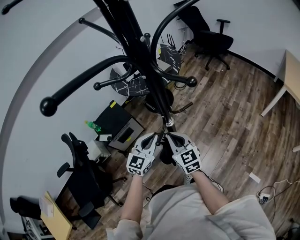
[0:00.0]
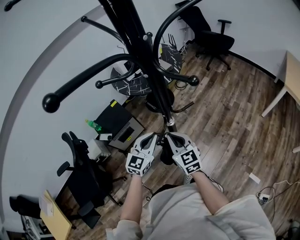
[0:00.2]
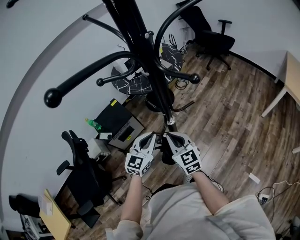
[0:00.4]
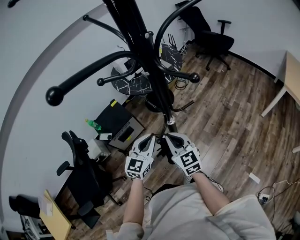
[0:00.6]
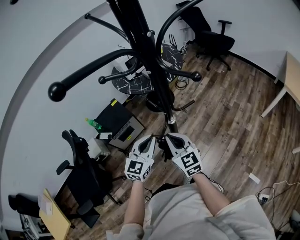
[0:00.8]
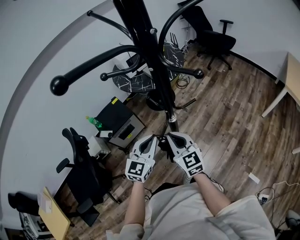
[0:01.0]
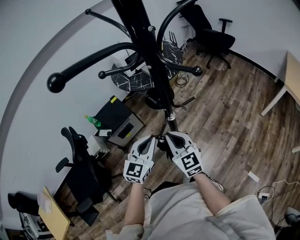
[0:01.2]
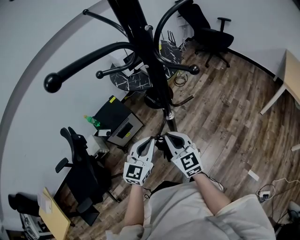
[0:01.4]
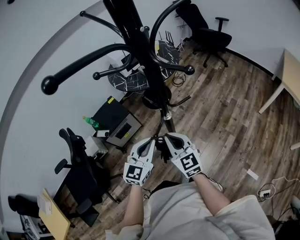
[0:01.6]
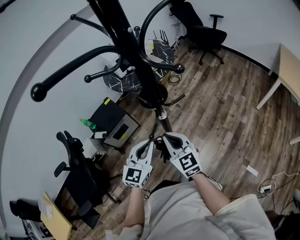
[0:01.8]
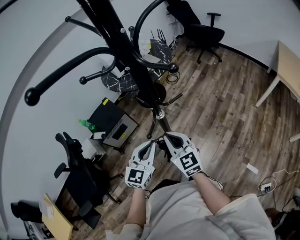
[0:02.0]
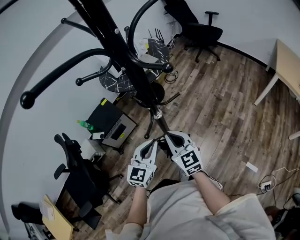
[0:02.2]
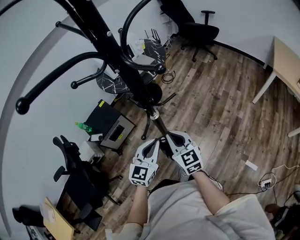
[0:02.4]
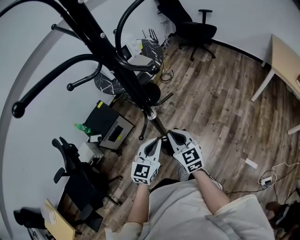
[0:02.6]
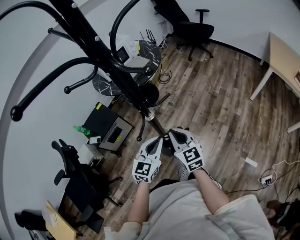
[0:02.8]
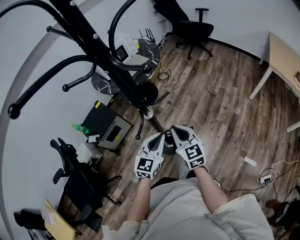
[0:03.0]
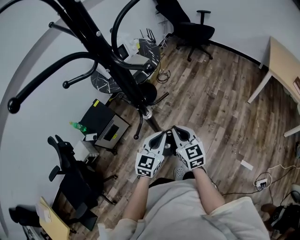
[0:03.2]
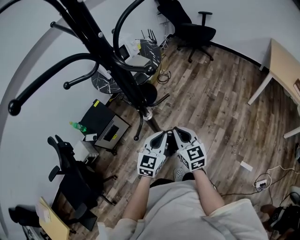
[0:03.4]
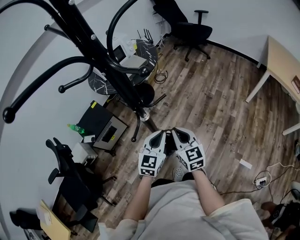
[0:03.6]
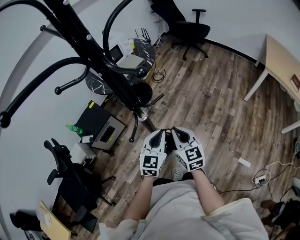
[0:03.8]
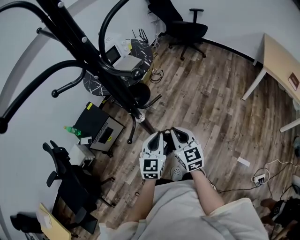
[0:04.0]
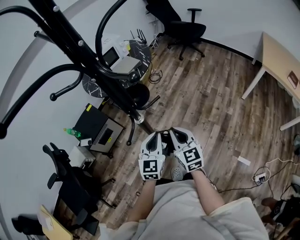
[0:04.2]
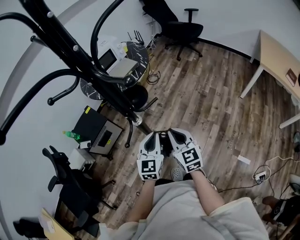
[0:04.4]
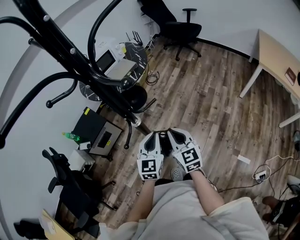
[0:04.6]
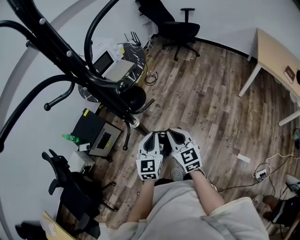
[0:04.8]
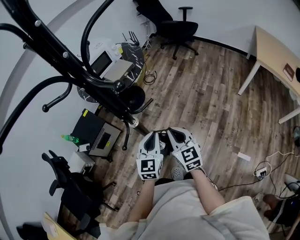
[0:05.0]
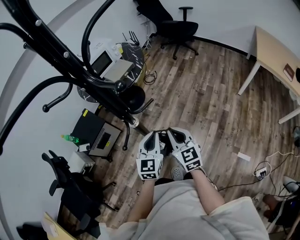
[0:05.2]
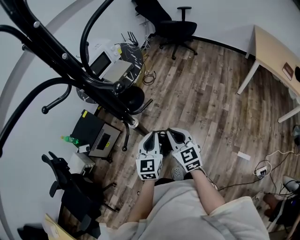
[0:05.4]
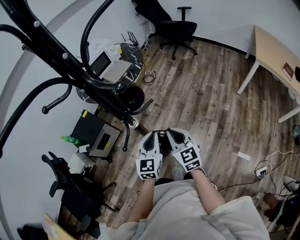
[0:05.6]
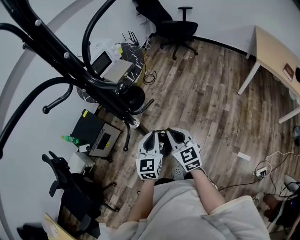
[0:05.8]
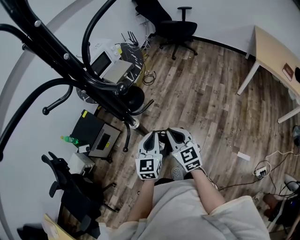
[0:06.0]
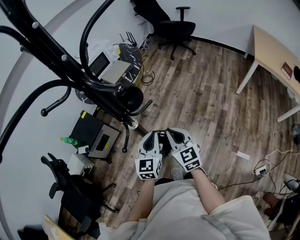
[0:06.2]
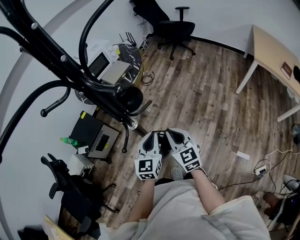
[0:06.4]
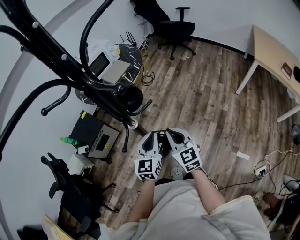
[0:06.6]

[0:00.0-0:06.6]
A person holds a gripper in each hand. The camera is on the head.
0:00.0 to 0:01.6: The left gripper moves backward, some 5 cm, while the right gripper shifts by approximately 5 cm.
0:01.6 to 0:03.2: The left gripper goes approximately 15 cm to the right and downward. Meanwhile the right gripper travels to the right by some 10 cm.
0:03.2 to 0:06.6: The grippers stay close to where they were, moving slightly.

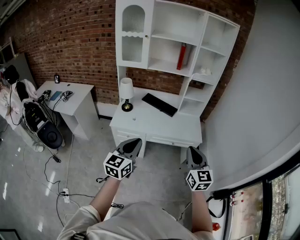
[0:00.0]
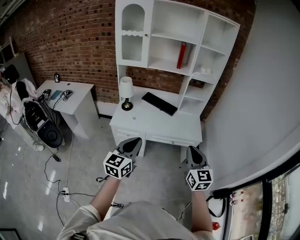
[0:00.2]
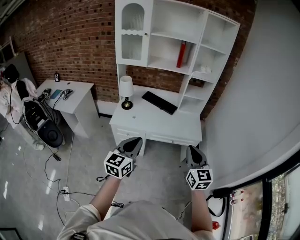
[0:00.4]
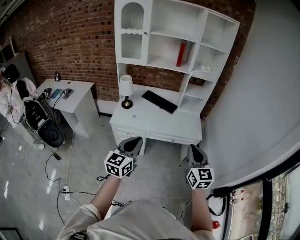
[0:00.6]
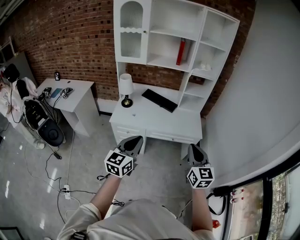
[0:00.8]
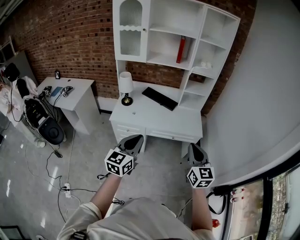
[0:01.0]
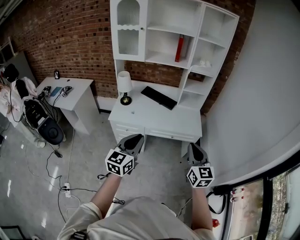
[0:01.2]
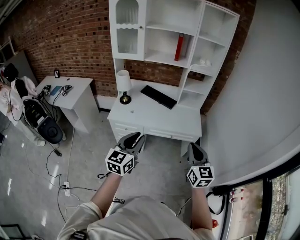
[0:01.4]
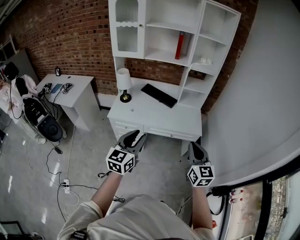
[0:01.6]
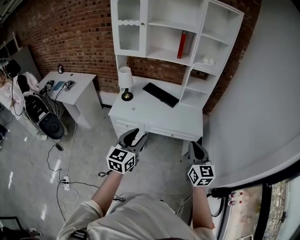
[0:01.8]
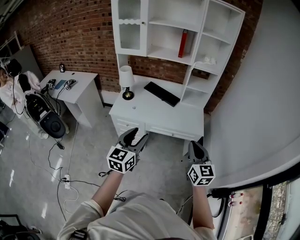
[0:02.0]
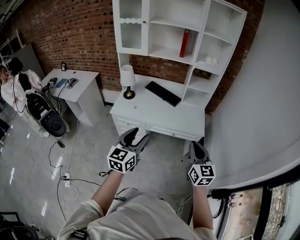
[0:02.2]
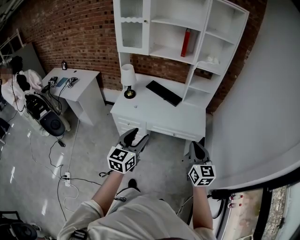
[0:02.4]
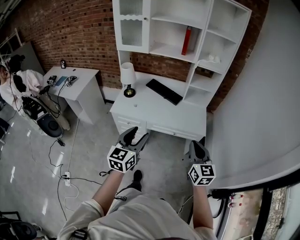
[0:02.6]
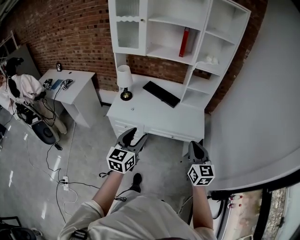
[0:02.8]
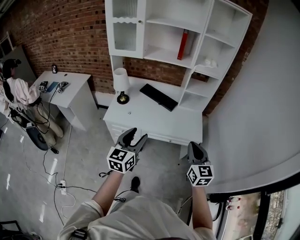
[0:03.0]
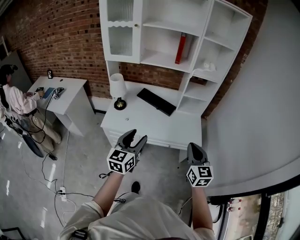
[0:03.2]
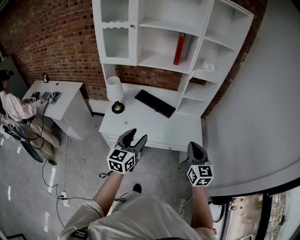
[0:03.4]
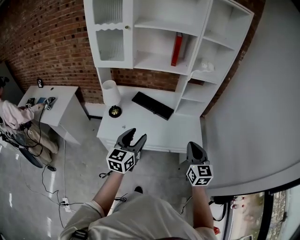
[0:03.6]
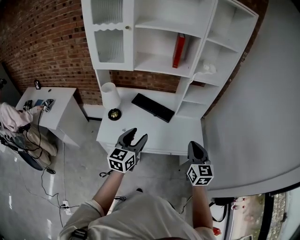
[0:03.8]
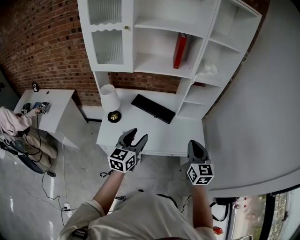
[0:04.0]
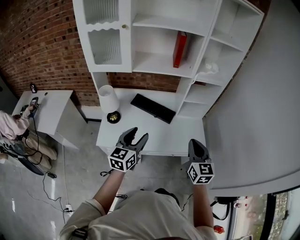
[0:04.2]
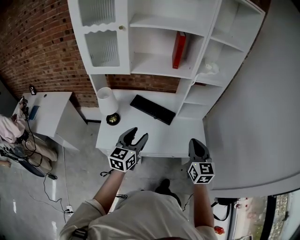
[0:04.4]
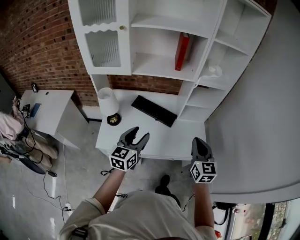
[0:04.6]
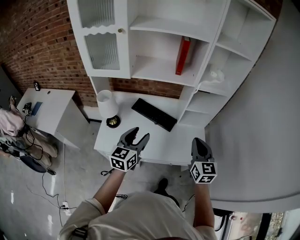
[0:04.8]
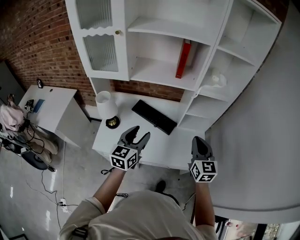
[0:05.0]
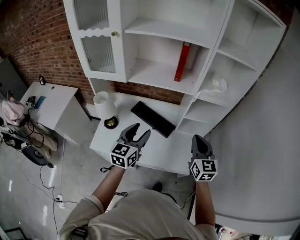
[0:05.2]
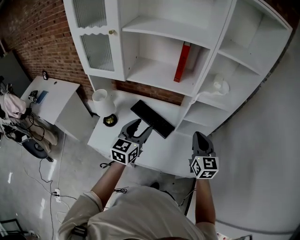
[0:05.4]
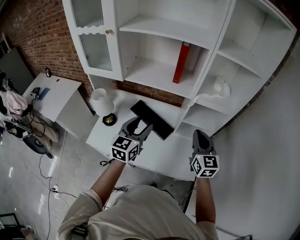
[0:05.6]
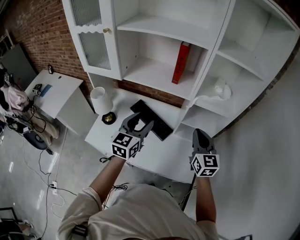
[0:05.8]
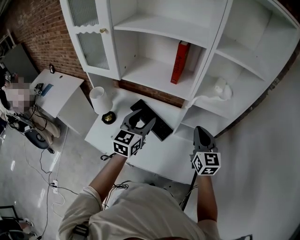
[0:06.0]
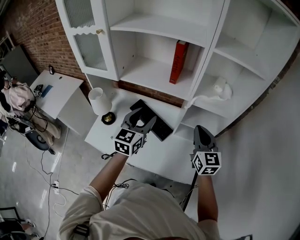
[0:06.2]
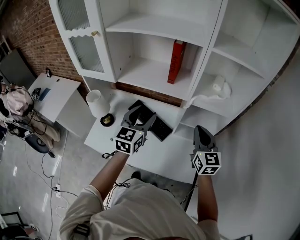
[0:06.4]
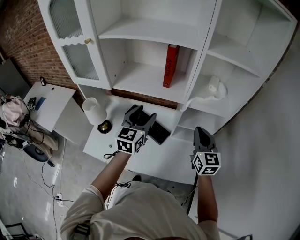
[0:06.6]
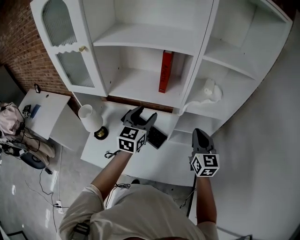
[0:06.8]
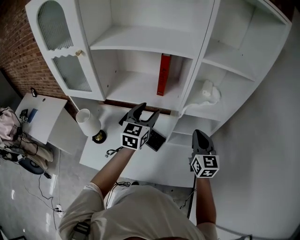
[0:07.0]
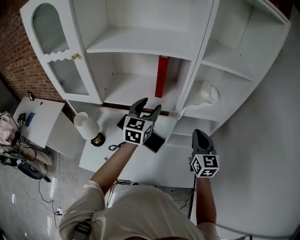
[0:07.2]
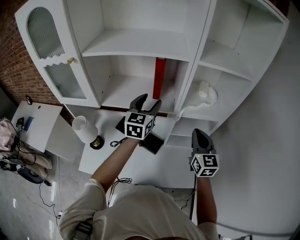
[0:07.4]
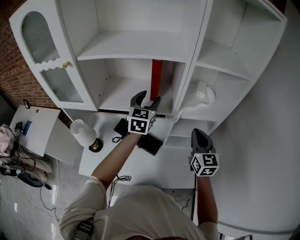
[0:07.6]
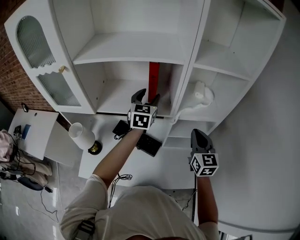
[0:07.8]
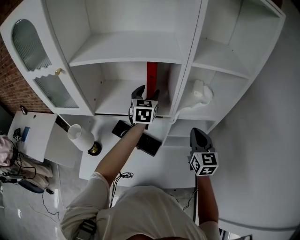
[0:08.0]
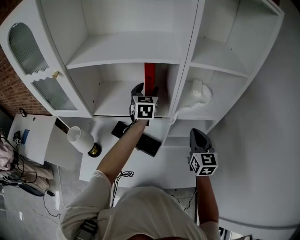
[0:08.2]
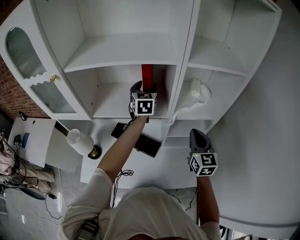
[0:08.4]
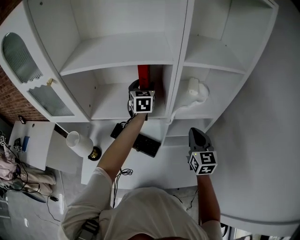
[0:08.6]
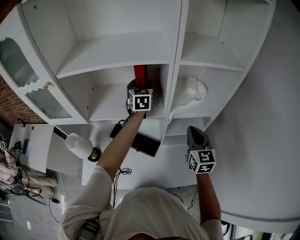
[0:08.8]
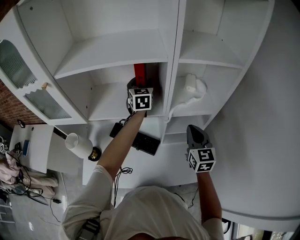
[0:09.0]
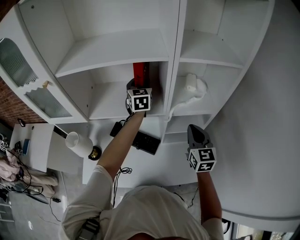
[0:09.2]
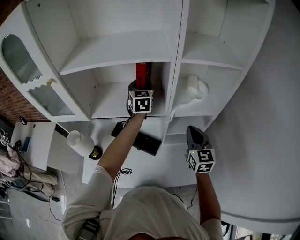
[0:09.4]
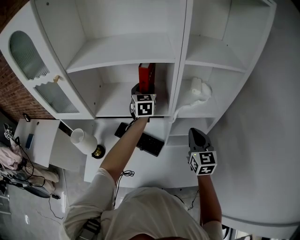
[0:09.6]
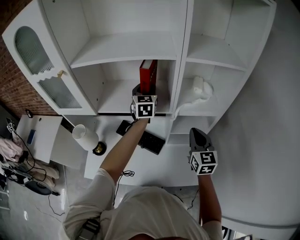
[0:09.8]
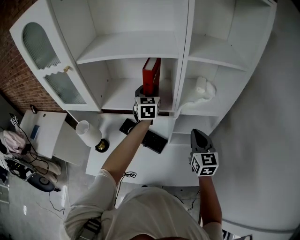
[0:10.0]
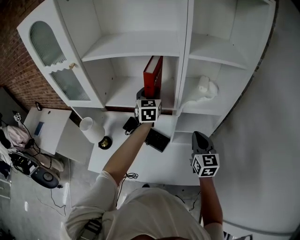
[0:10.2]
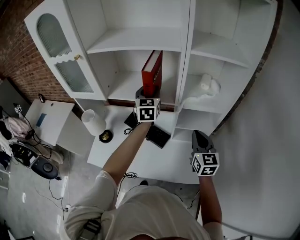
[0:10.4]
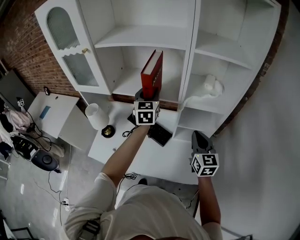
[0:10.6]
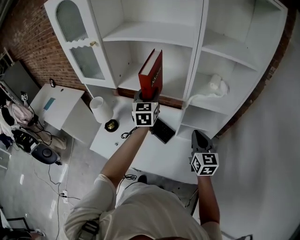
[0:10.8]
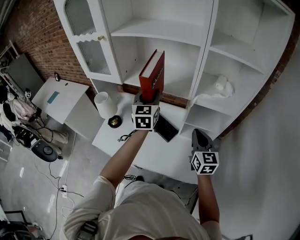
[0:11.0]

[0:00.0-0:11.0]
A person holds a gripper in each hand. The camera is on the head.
0:00.0 to 0:01.6: Both grippers travel together to the right, approximately 5 cm. The left gripper opens its fingers.
0:01.6 to 0:03.2: Both grippers move forward, some 15 cm. The left gripper opens up.
0:03.2 to 0:04.8: The two grippers go some 25 cm forward.
0:04.8 to 0:06.2: The two grippers go approximately 20 cm forward and to the right.
0:06.2 to 0:07.8: The right gripper moves forward, roughly 5 cm, while the left gripper moves forward, about 25 cm.
0:07.8 to 0:09.4: The left gripper moves forward, about 10 cm.
0:09.4 to 0:11.0: The left gripper travels backward and to the left by approximately 25 cm; the right gripper heads backward, covering some 5 cm.

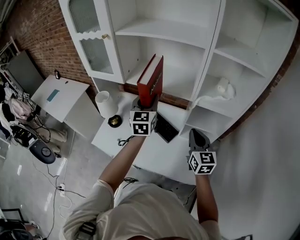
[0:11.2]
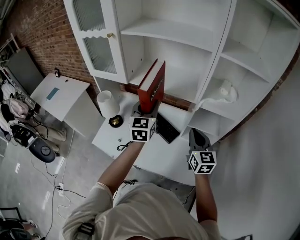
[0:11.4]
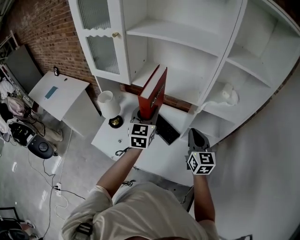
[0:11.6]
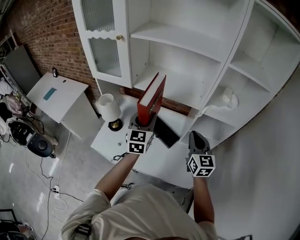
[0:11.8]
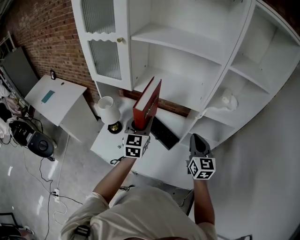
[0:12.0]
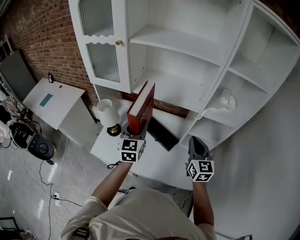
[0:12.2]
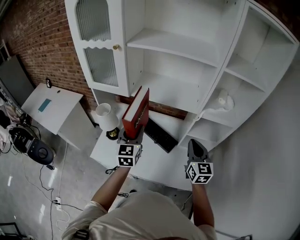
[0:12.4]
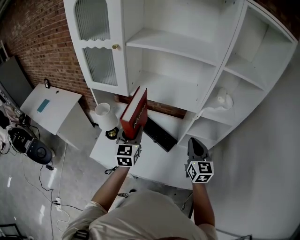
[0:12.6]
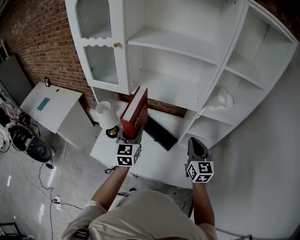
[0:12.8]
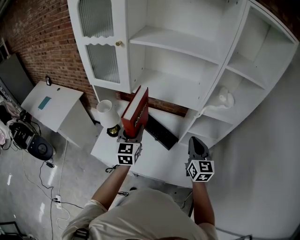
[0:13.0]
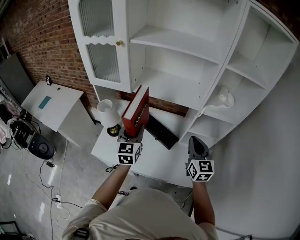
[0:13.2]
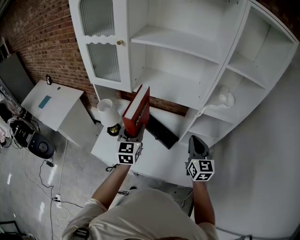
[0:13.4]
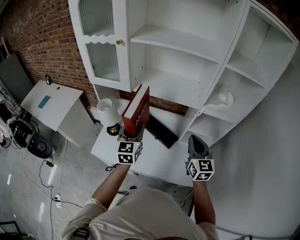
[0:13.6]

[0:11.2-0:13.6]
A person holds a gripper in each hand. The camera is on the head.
0:11.2 to 0:12.4: The right gripper is displaced to the left by approximately 5 cm; the left gripper is displaced to the left, backward and downward by approximately 15 cm.
0:12.4 to 0:13.6: The grippers make only small movements.

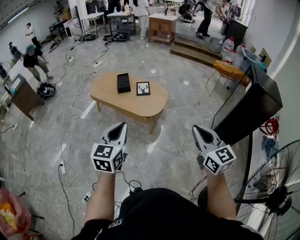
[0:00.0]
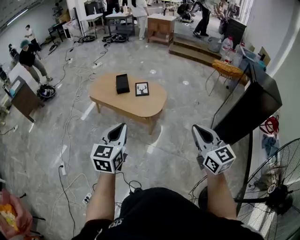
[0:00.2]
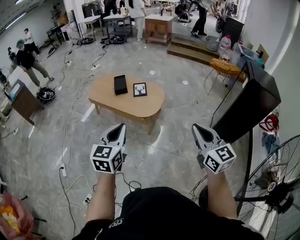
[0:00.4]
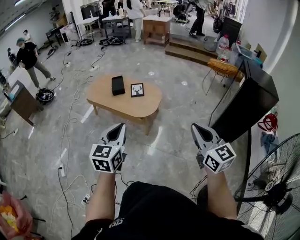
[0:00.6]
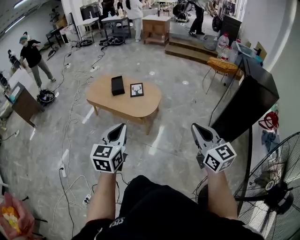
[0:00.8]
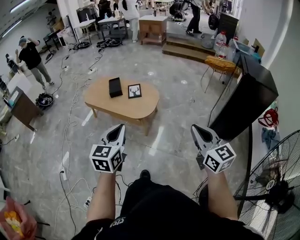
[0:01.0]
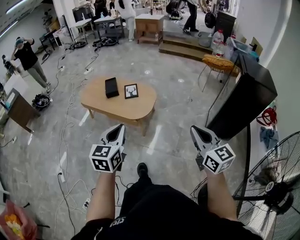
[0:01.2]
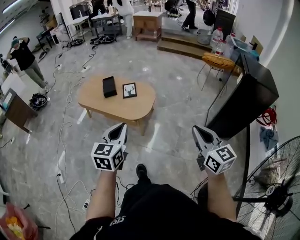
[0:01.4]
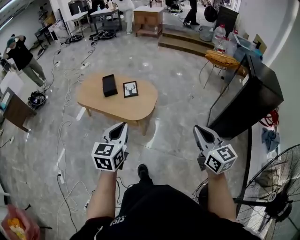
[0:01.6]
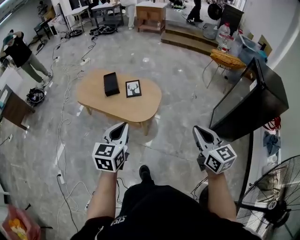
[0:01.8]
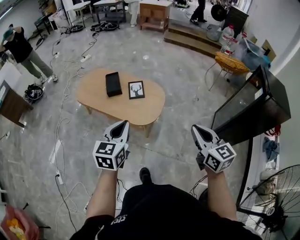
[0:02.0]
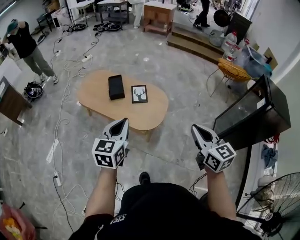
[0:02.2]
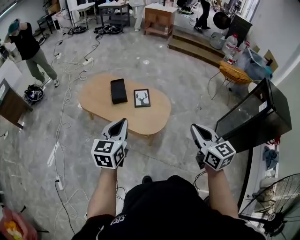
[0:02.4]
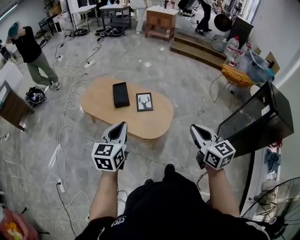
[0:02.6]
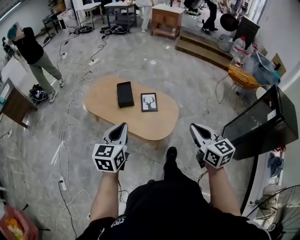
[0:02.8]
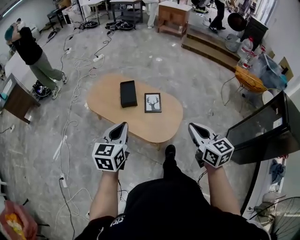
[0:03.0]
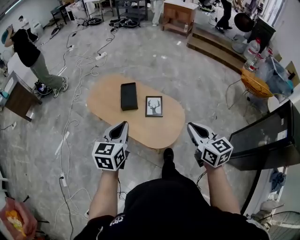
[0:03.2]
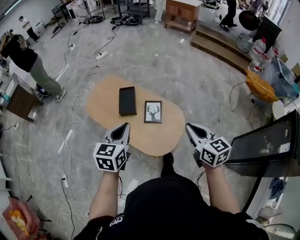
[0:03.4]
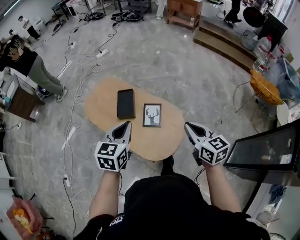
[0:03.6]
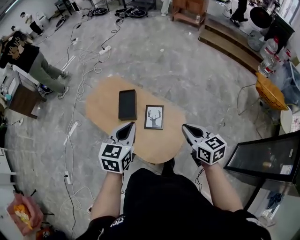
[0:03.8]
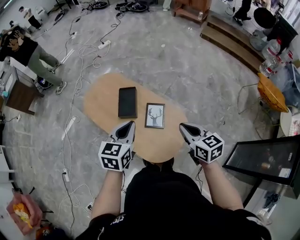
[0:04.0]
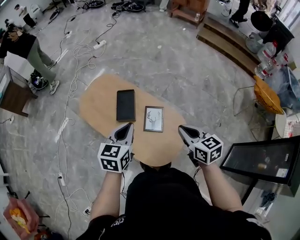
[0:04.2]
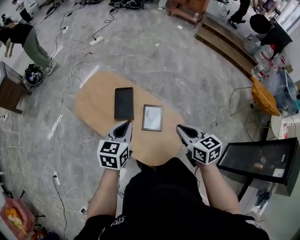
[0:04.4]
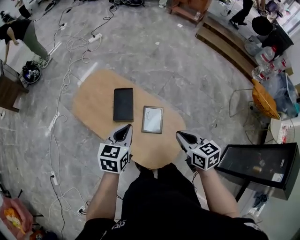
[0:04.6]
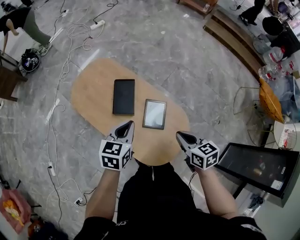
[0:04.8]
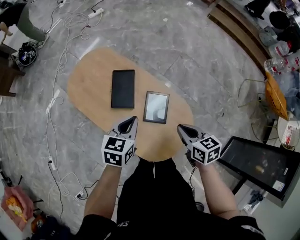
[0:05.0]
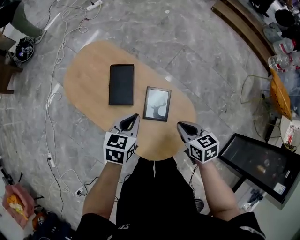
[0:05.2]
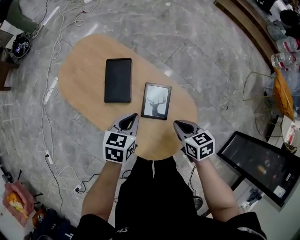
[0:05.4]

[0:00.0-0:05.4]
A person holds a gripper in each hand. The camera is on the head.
0:00.0 to 0:01.4: The right gripper moves to the right, approximately 10 cm. The left gripper moves to the right and forward, some 10 cm.
0:01.4 to 0:02.8: Both grippers move forward and to the left, some 35 cm.
0:02.8 to 0:04.0: The right gripper heads forward, covering about 35 cm, and rotates some 20 degrees. Meanwhile the left gripper goes approximately 30 cm forward and to the right.
0:04.0 to 0:05.4: The two grippers go approximately 25 cm downward. The right gripper rotates approximately 20 degrees.
